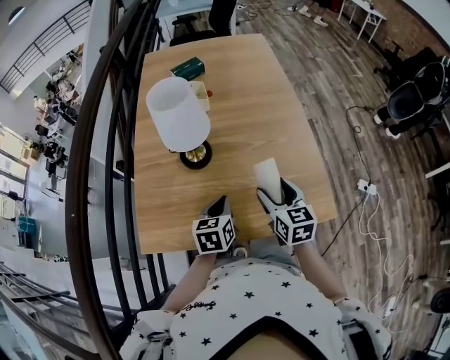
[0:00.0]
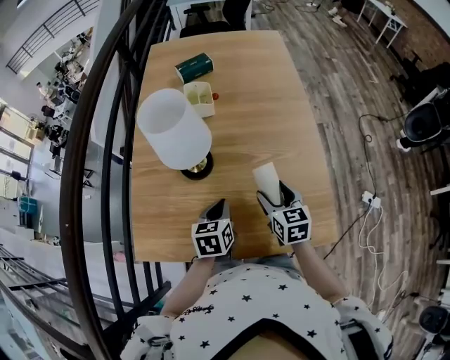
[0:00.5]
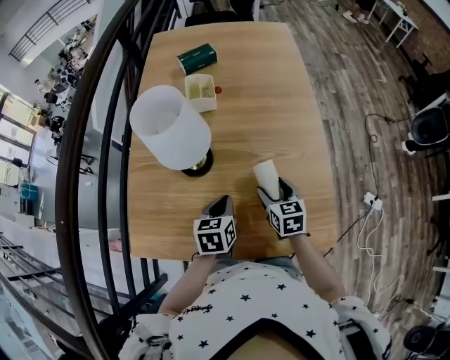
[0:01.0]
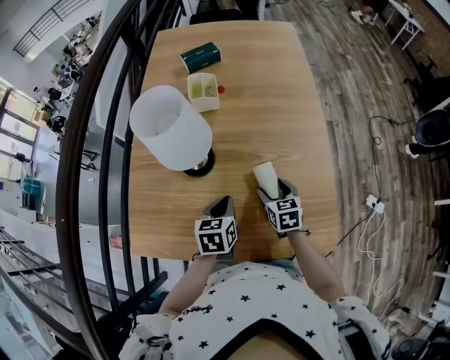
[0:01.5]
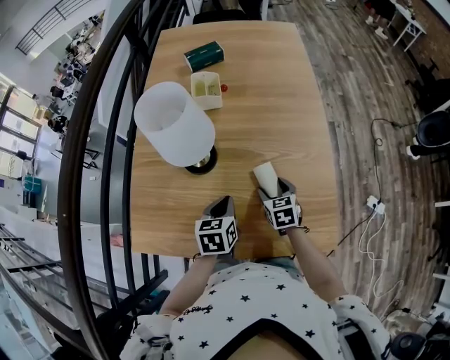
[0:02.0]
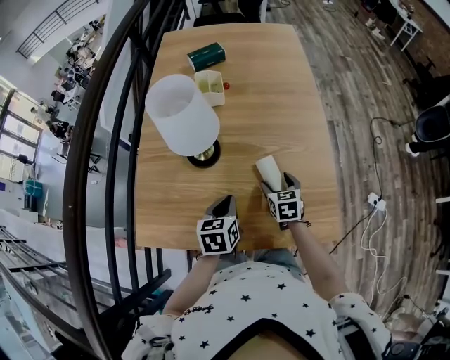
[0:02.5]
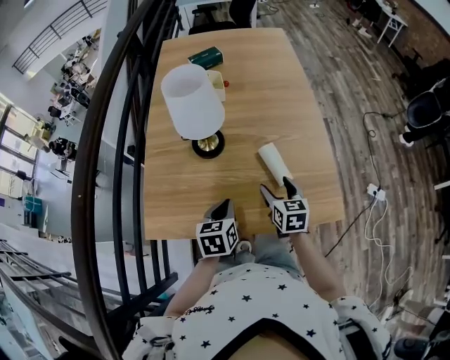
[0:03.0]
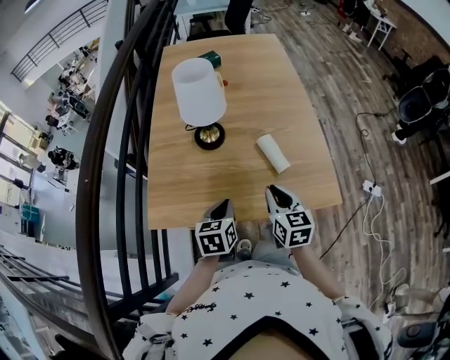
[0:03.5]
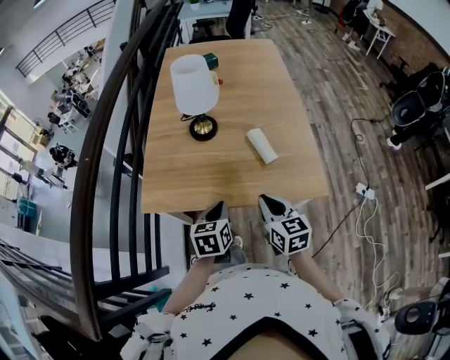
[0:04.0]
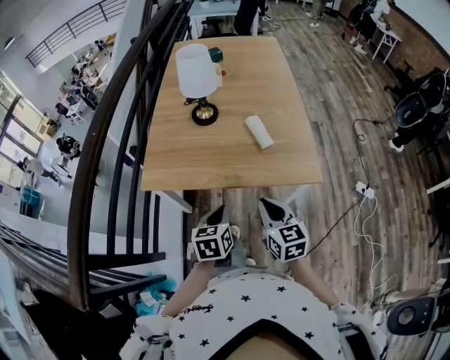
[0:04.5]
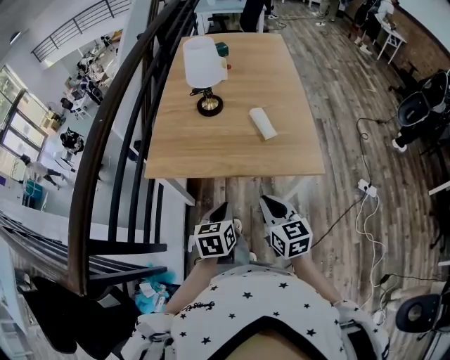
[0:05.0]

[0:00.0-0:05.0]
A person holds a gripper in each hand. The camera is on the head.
0:00.0 to 0:02.5: The right gripper heads downward and forward, covering about 20 cm.
0:02.5 to 0:05.0: Both grippers travel together backward, about 40 cm. The right gripper rotates some 30 degrees, and closes its fingers.

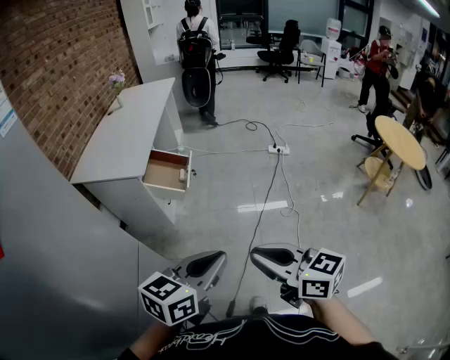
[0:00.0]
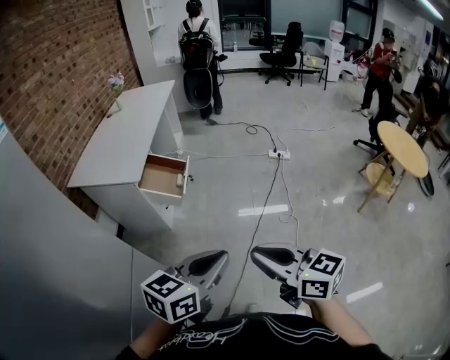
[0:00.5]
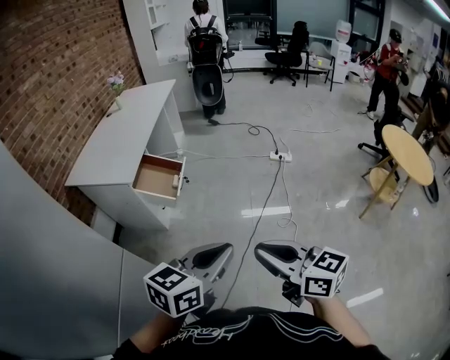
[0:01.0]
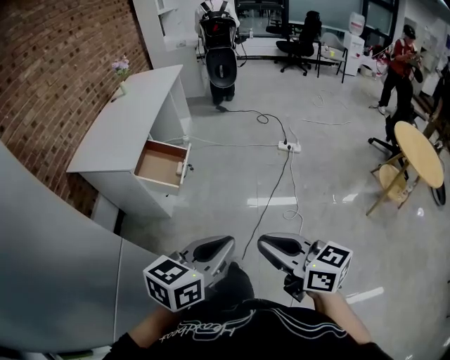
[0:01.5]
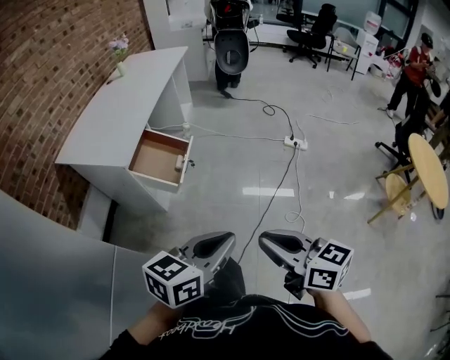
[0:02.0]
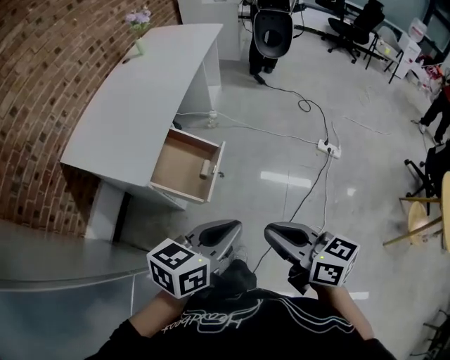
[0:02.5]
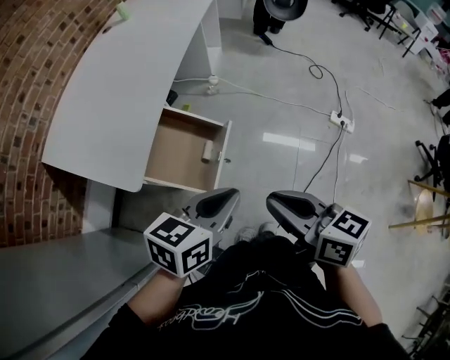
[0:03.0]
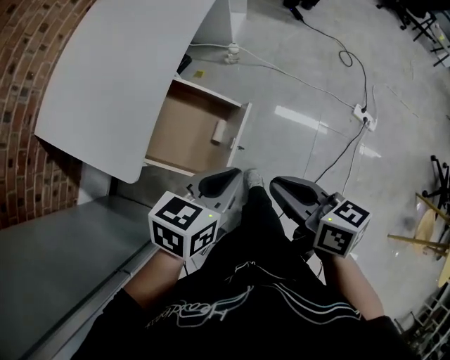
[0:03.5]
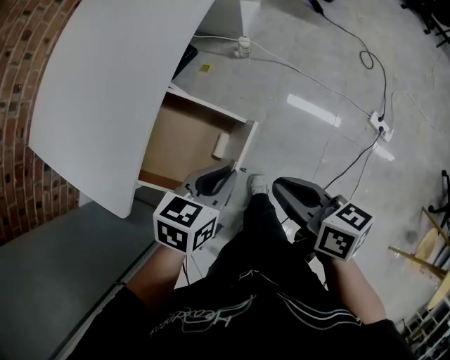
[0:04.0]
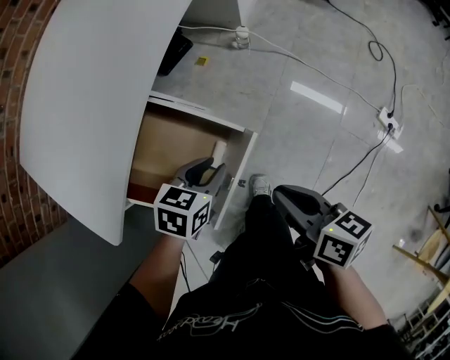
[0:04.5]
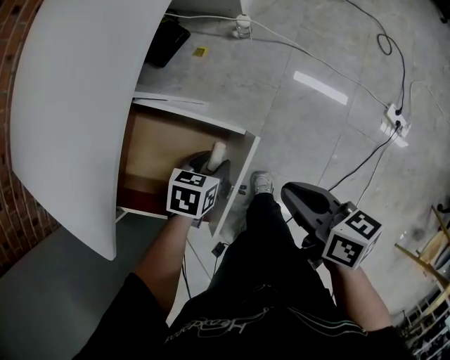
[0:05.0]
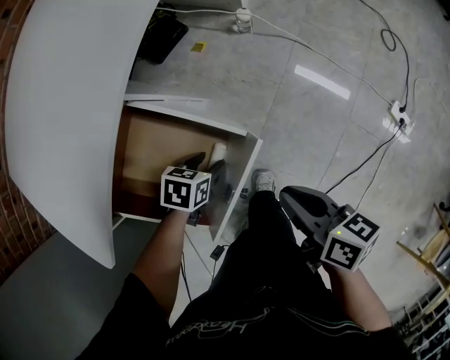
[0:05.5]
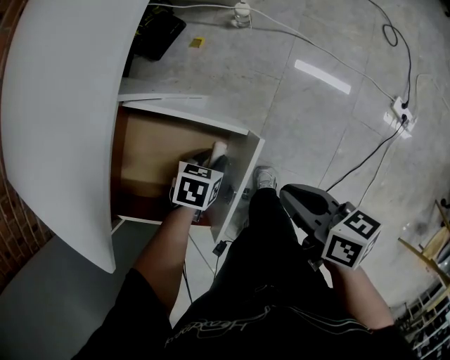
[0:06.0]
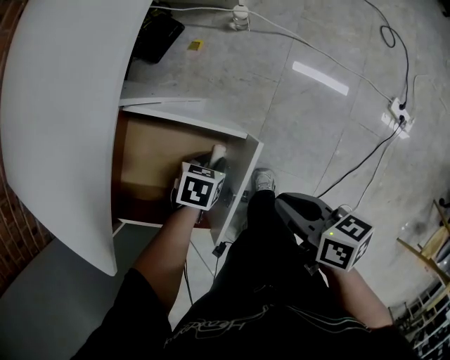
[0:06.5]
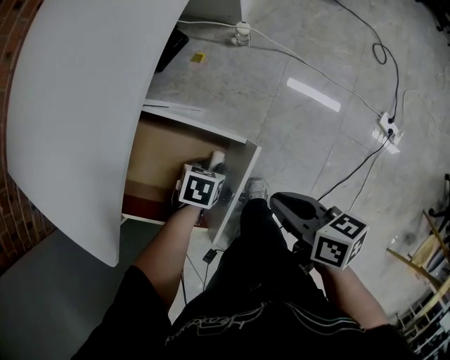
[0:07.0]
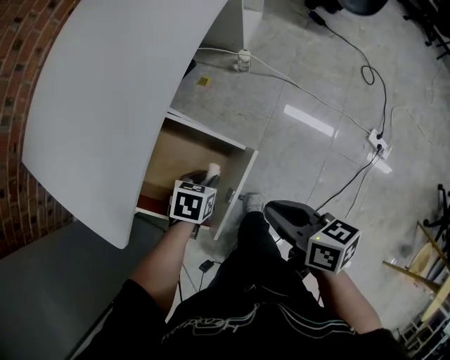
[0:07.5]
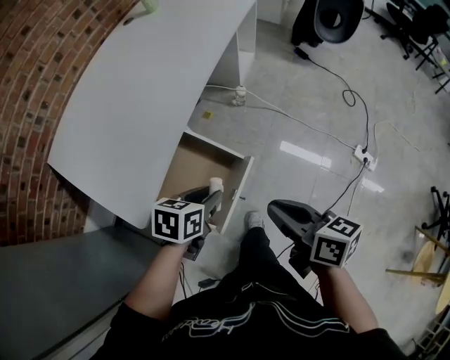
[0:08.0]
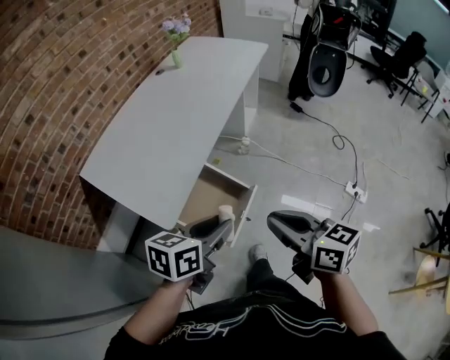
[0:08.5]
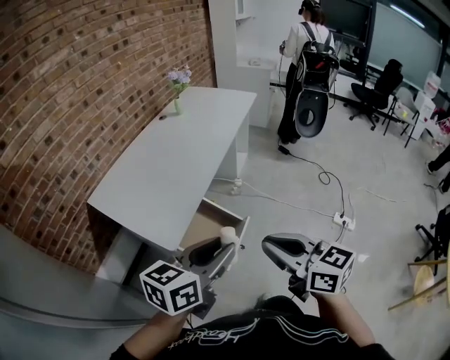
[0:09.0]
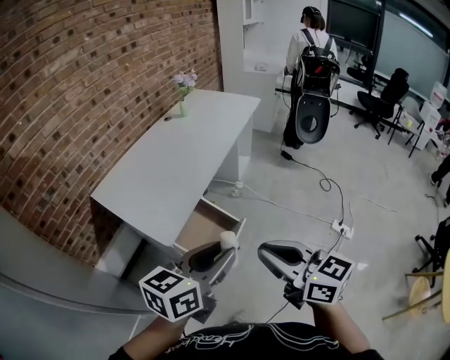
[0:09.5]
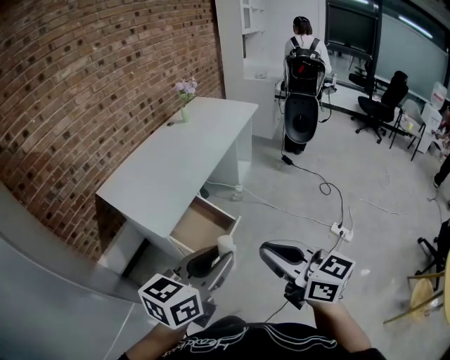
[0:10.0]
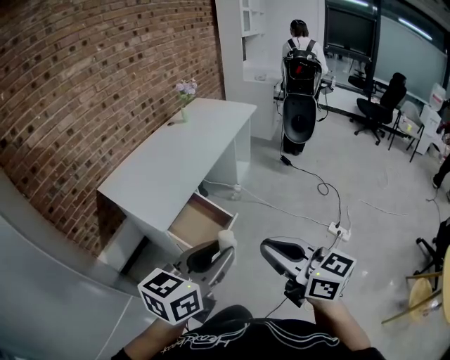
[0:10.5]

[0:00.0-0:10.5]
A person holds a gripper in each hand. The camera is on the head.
0:00.0 to 0:02.0: The right gripper is displaced forward, downward and to the right by approximately 25 cm. Meanwhile the left gripper shifts some 25 cm forward and to the right.
0:02.0 to 0:04.0: The two grippers travel together, forward, approximately 70 cm. The left gripper moves downward, approximately 30 cm, and changes its angle by roughly 30 degrees, while the right gripper turns by approximately 30 degrees.
0:04.0 to 0:06.5: The left gripper moves downward, roughly 30 cm, points its fingers some 30 degrees further downward, and opens up; the right gripper travels downward by some 20 cm.
0:06.5 to 0:08.5: The grippers both shift upward by some 50 cm. The right gripper changes its angle by roughly 40 degrees. Meanwhile the left gripper angles its fingers upward, by approximately 40 degrees.
0:08.5 to 0:10.5: The left gripper shifts about 35 cm backward, upward and to the right, and turns by approximately 30 degrees. The right gripper goes about 30 cm backward and upward, and rotates about 20 degrees.

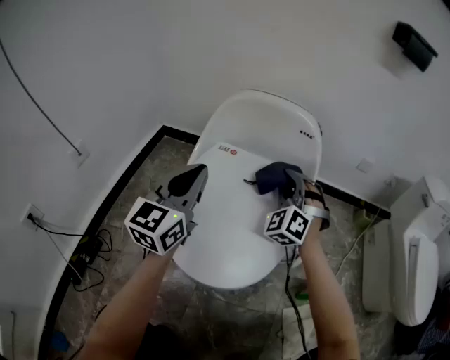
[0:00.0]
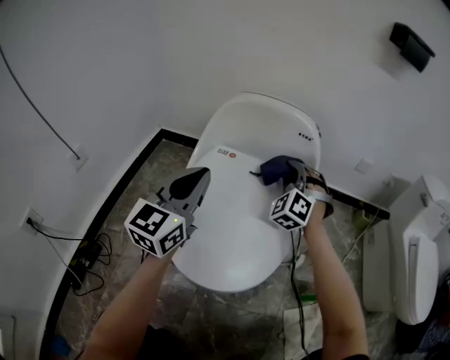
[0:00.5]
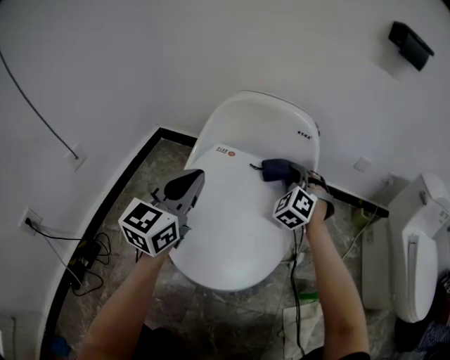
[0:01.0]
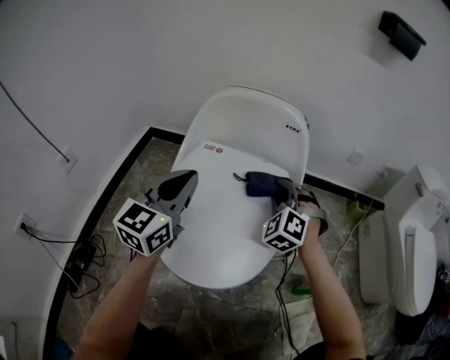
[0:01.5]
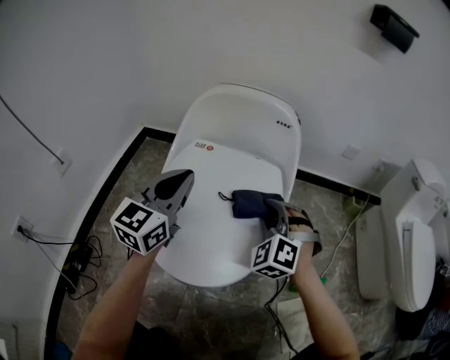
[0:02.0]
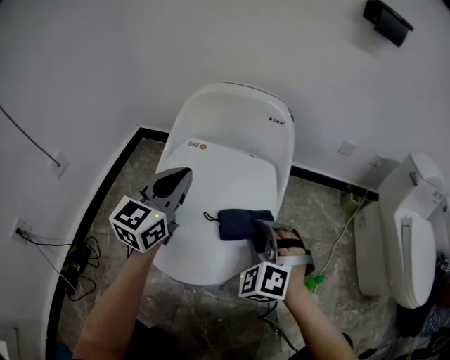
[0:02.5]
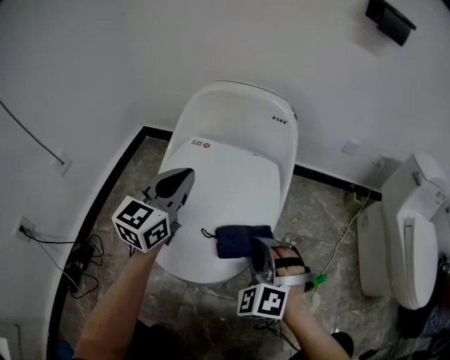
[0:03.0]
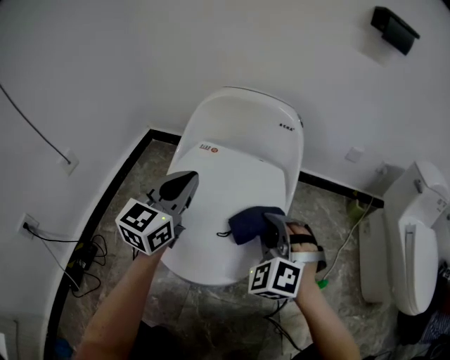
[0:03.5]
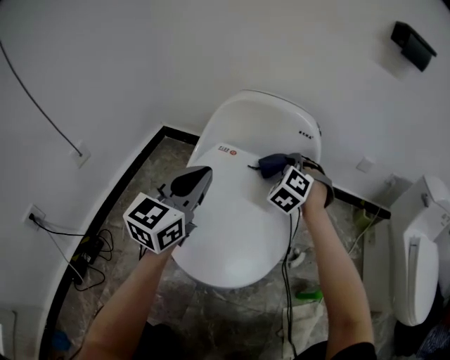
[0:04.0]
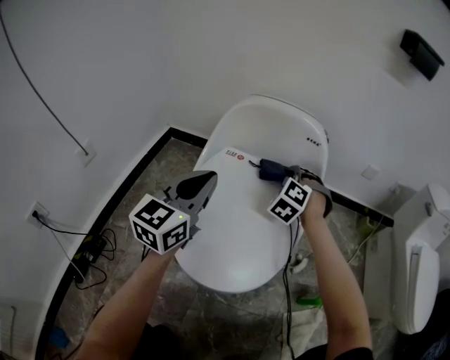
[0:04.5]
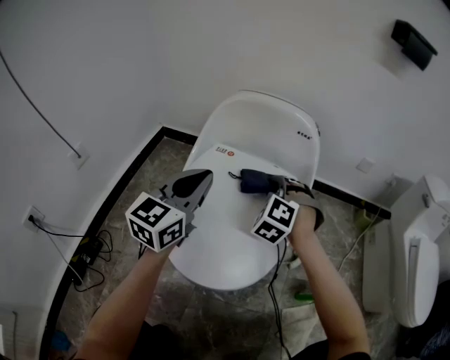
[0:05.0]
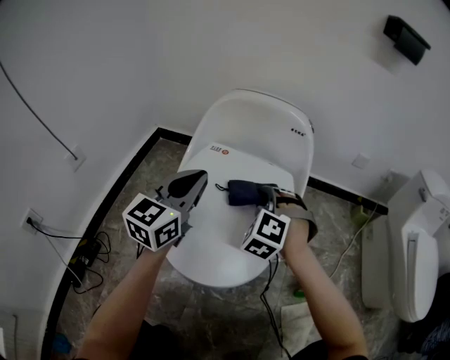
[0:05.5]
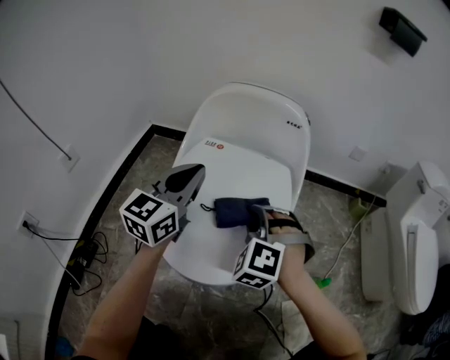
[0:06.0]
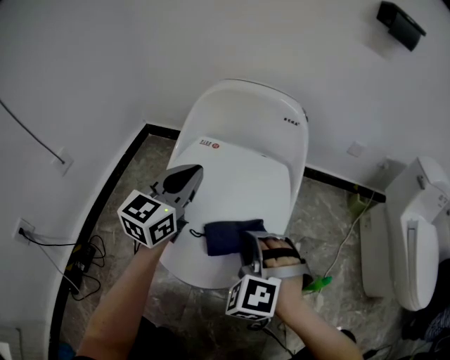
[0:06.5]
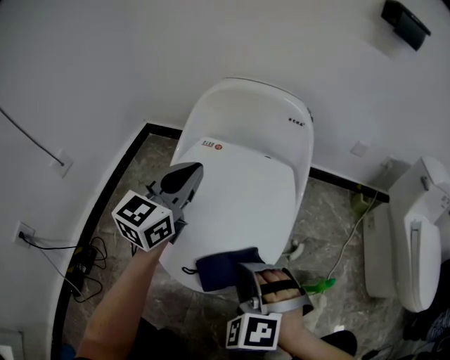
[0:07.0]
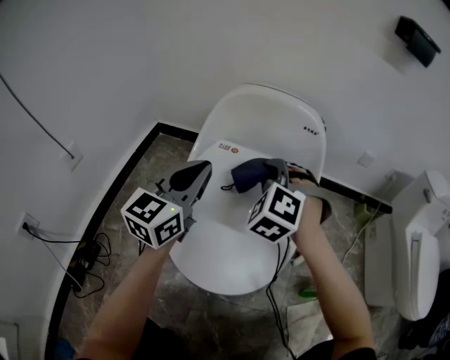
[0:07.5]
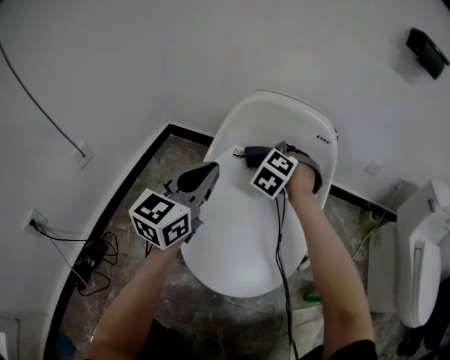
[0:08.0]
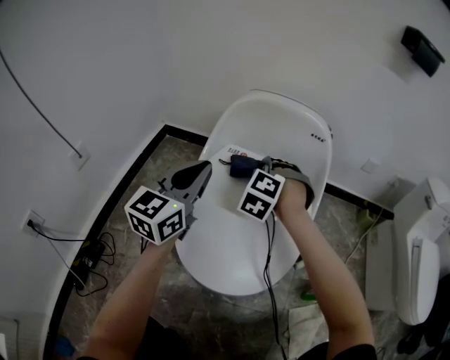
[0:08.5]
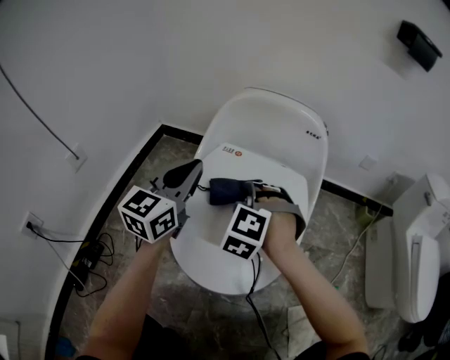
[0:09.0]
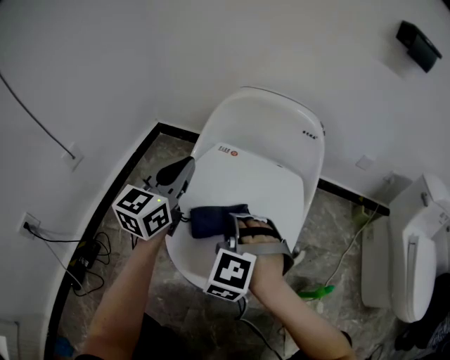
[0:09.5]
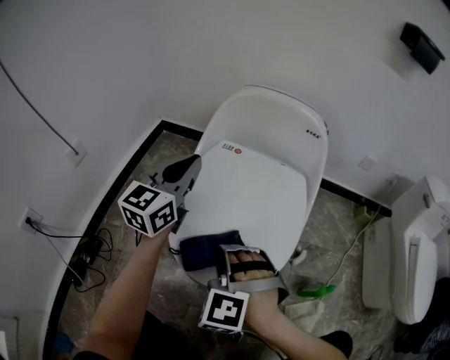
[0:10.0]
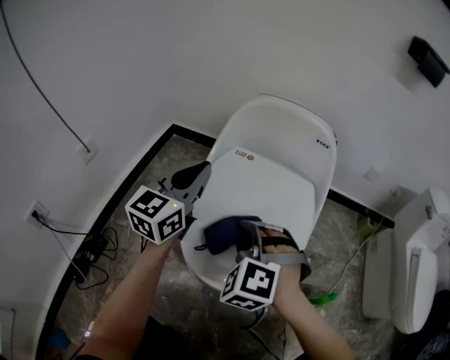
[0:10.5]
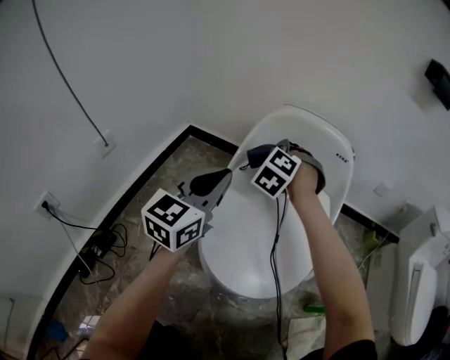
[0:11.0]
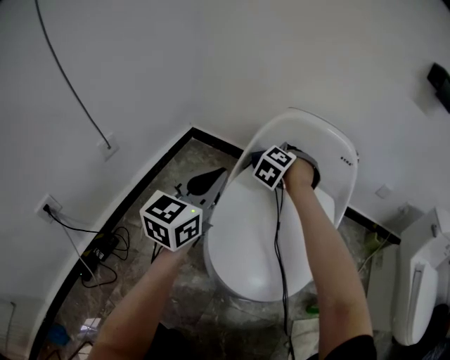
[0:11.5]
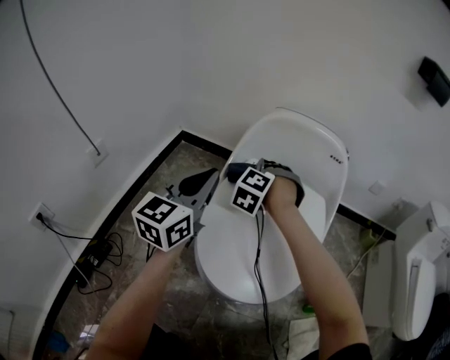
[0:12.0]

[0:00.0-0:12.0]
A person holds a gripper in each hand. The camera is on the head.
0:06.0 to 0:08.0: The left gripper moves some 5 cm.
0:10.0 to 0:12.0: The left gripper changes place by roughly 5 cm.
